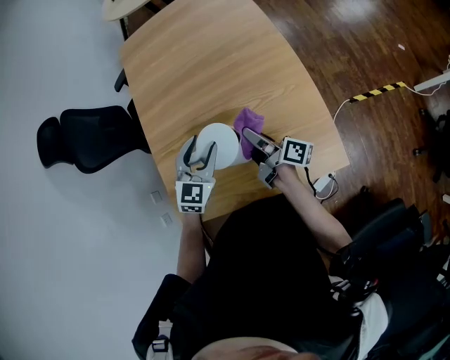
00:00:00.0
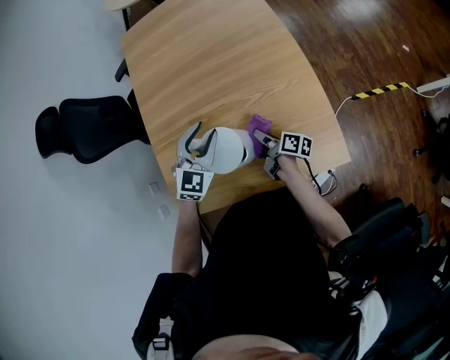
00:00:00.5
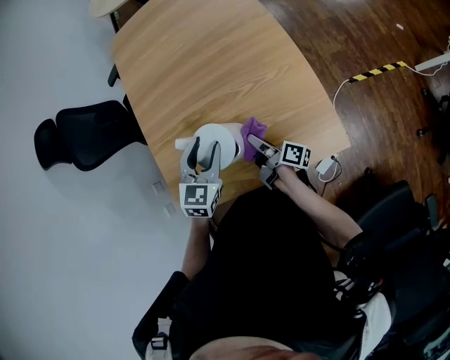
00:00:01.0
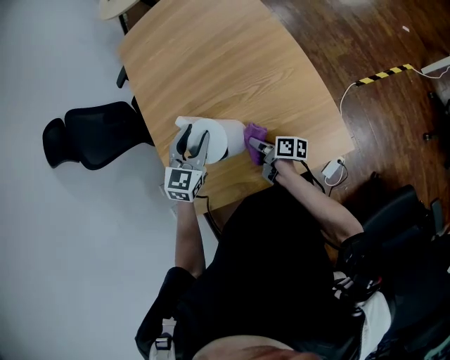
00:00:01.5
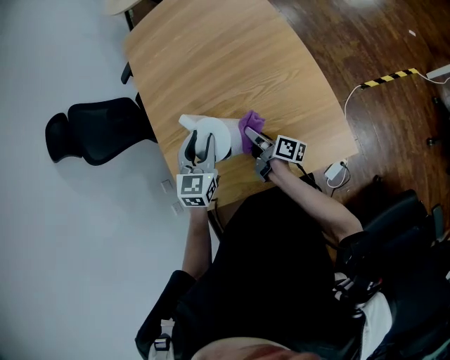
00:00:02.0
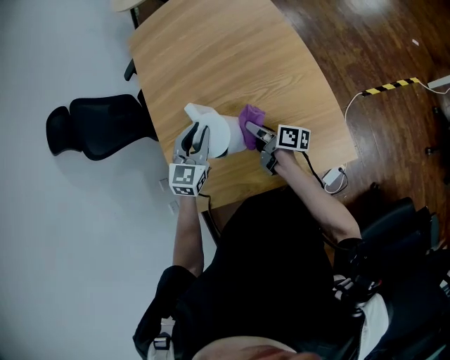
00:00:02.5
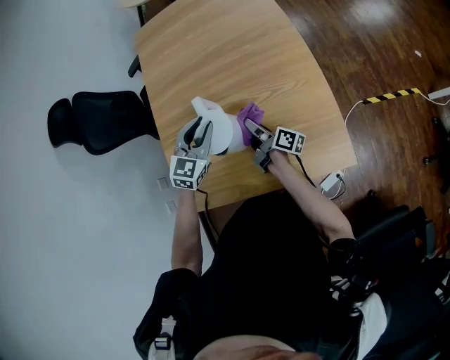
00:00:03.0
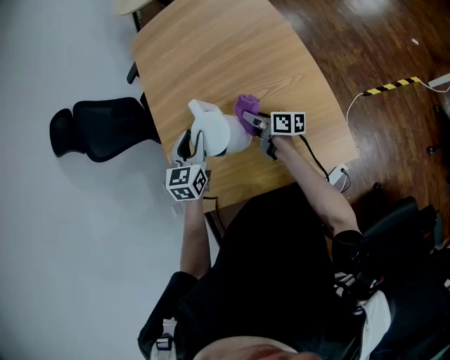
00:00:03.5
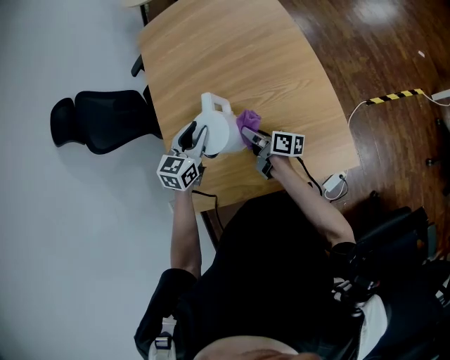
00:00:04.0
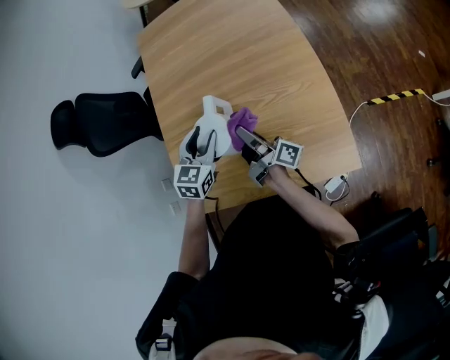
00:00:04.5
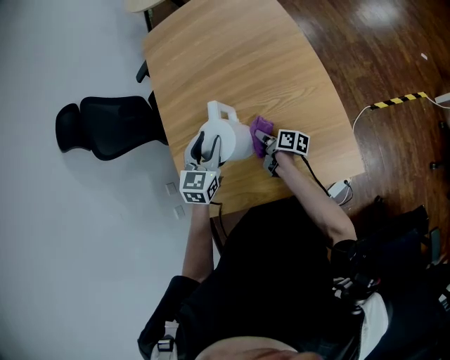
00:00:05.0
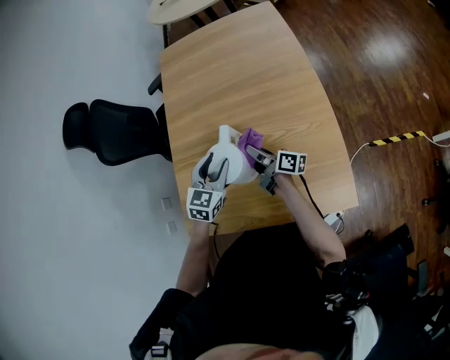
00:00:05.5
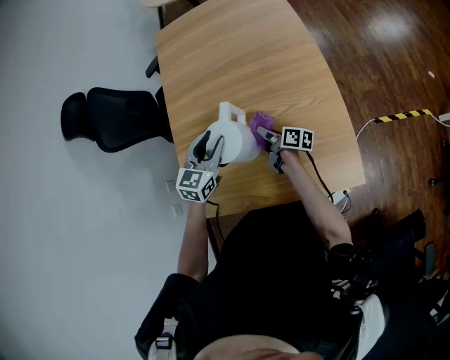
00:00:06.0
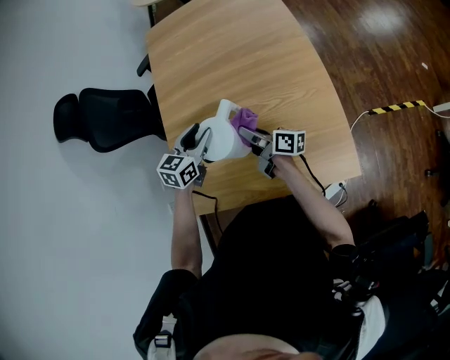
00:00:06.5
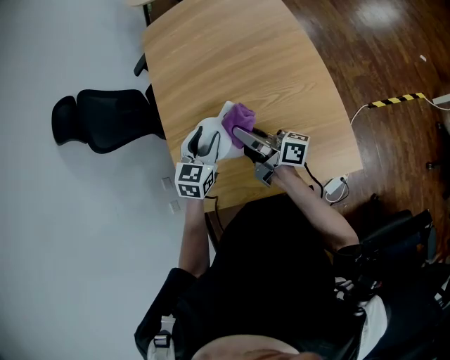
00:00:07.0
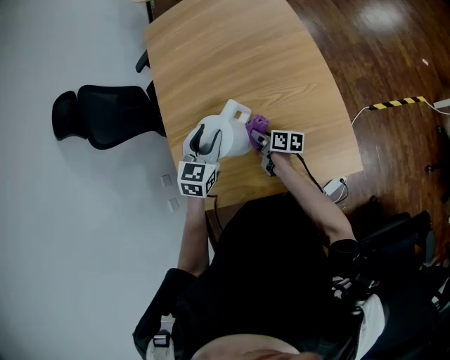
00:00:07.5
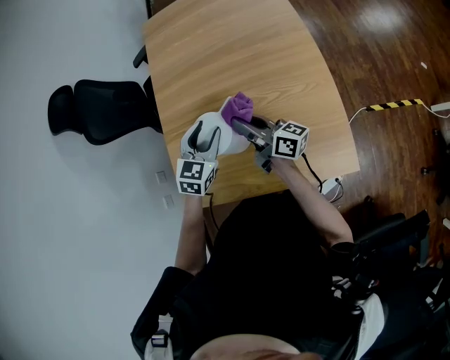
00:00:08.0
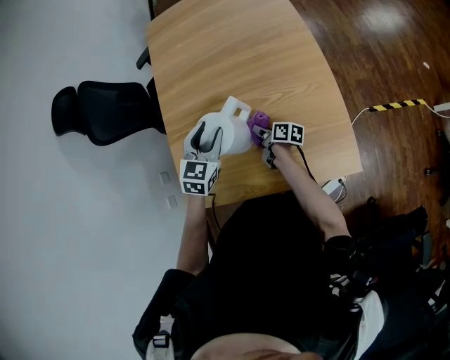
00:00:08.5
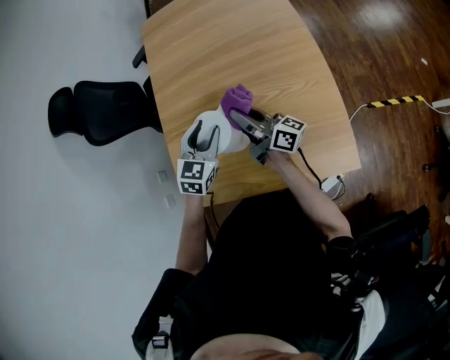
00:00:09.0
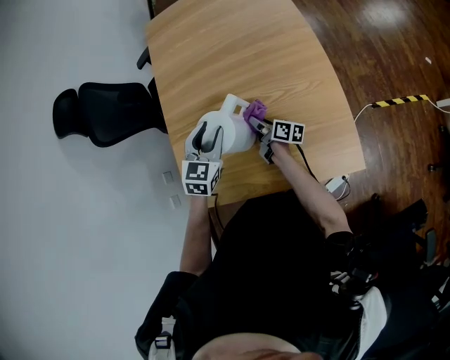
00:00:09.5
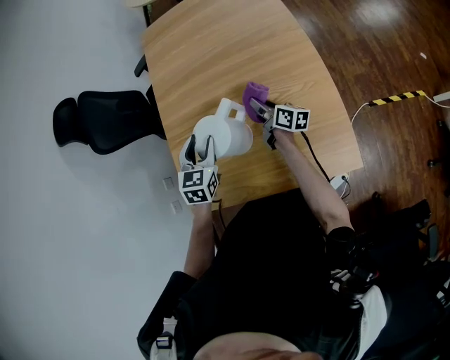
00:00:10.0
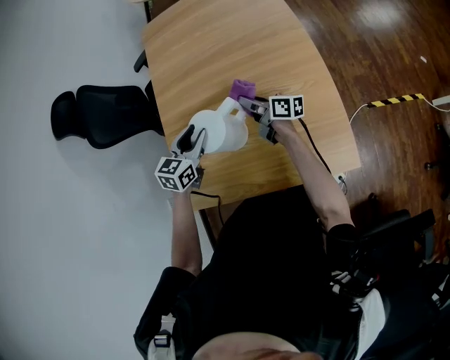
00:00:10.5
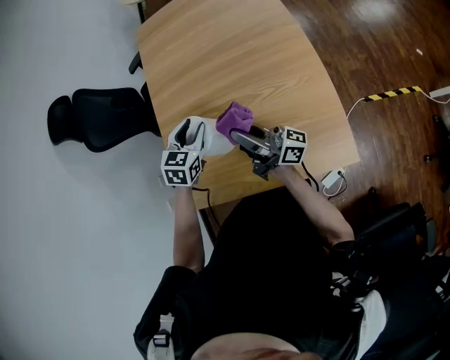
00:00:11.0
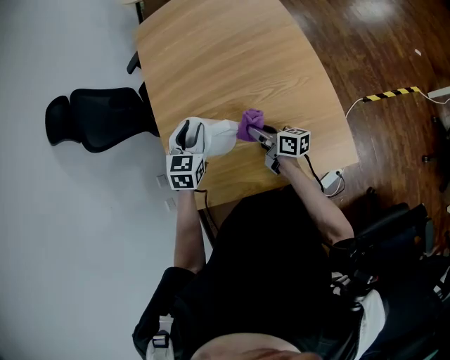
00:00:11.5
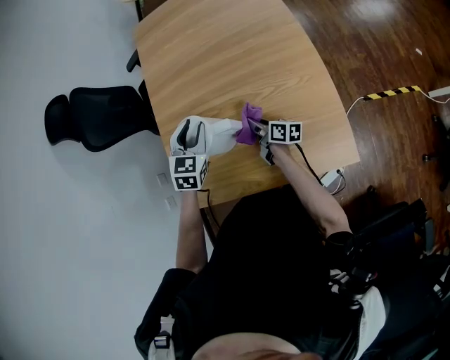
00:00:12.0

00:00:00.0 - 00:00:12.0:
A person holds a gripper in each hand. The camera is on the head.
00:00:00.0 - 00:00:02.0: The left gripper closes its fingers; the right gripper goes up and down, some 20 cm each way, reversing 3 times.
00:00:02.0 - 00:00:04.0: The left gripper shifts by roughly 5 cm.
00:00:04.0 - 00:00:06.0: The right gripper goes up and down, approximately 20 cm each way, reversing 3 times.
00:00:06.0 - 00:00:08.0: The right gripper swings up and down, about 25 cm each way, with 2 reversals, and swivels about 30 degrees.
00:00:08.0 - 00:00:10.0: The right gripper swings up and down, roughly 25 cm each way, with 3 reversals, and rotates approximately 20 degrees.
00:00:10.0 - 00:00:12.0: The right gripper goes roughly 10 cm backward and to the left, and goes upward and returns, roughly 15 cm each way.

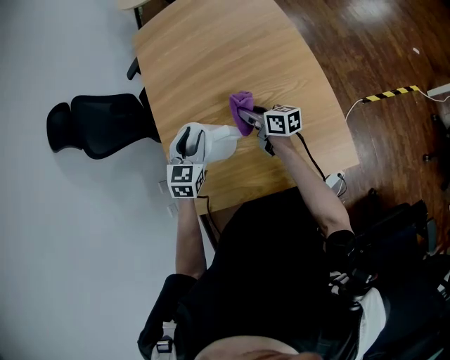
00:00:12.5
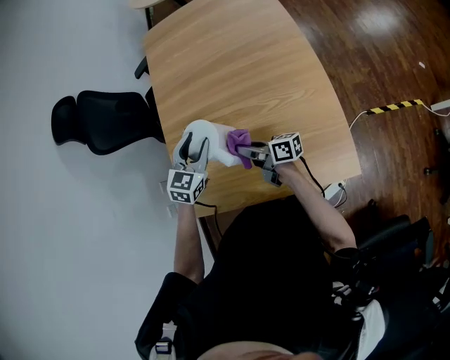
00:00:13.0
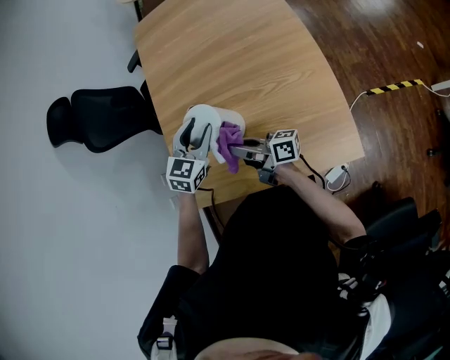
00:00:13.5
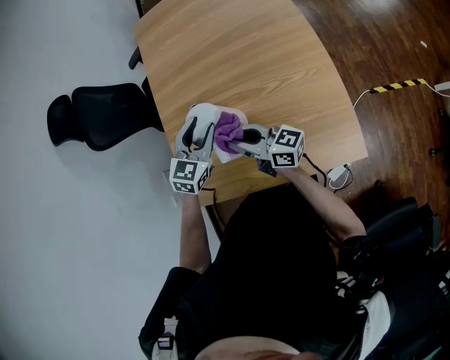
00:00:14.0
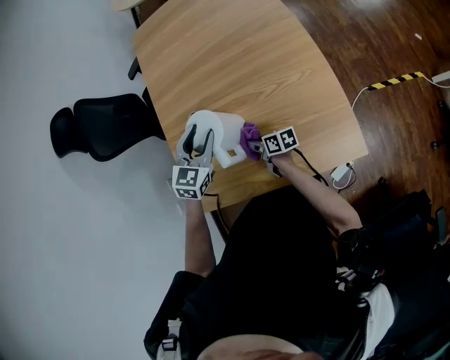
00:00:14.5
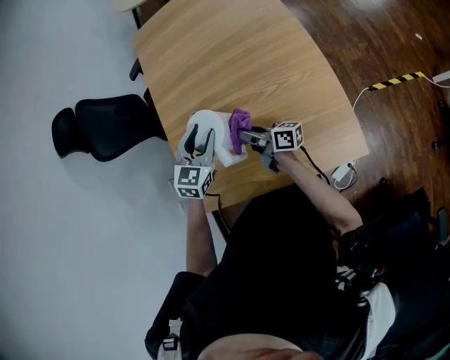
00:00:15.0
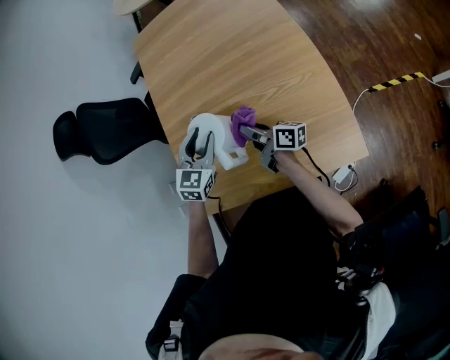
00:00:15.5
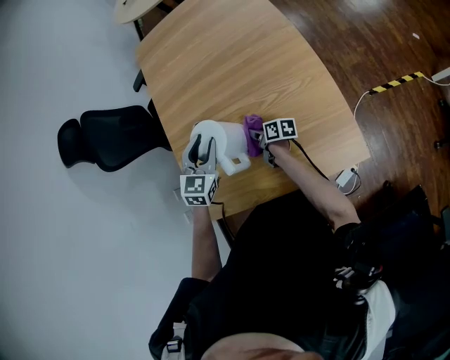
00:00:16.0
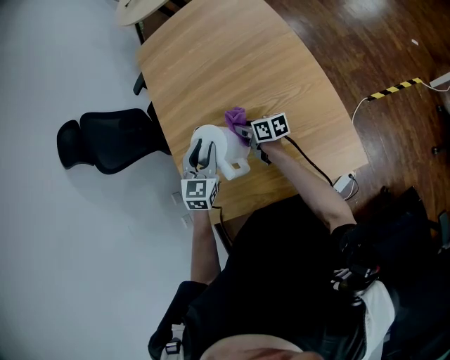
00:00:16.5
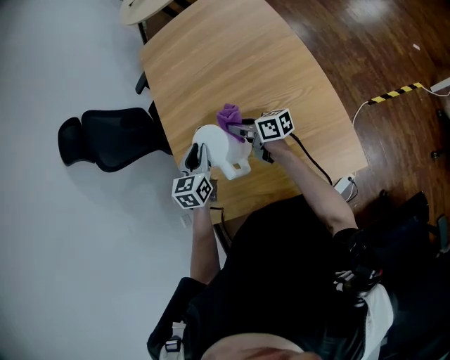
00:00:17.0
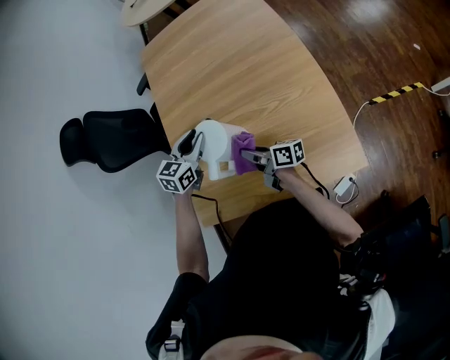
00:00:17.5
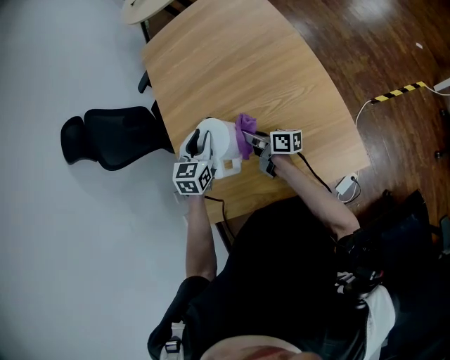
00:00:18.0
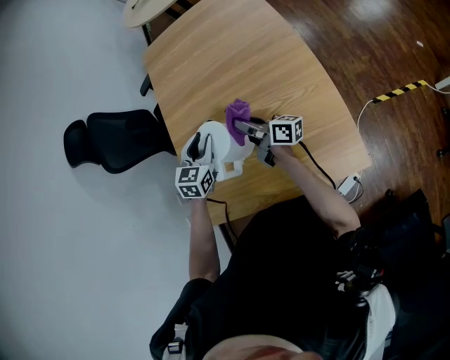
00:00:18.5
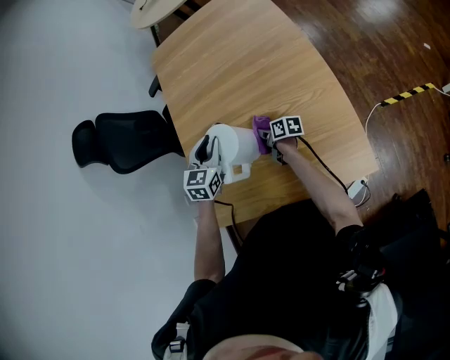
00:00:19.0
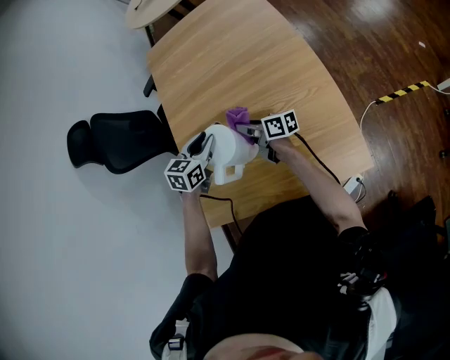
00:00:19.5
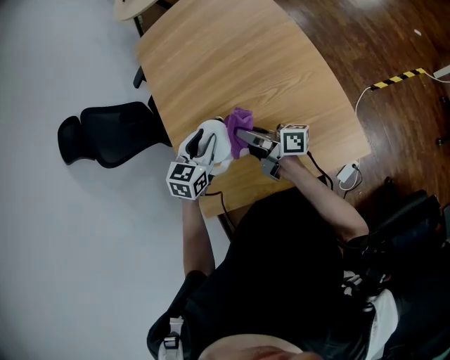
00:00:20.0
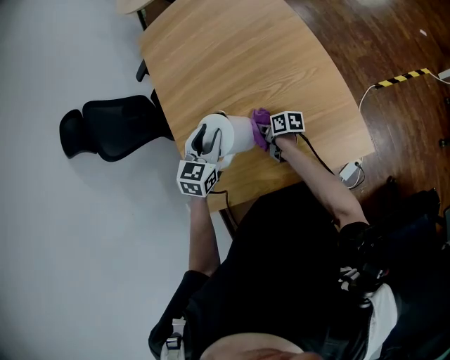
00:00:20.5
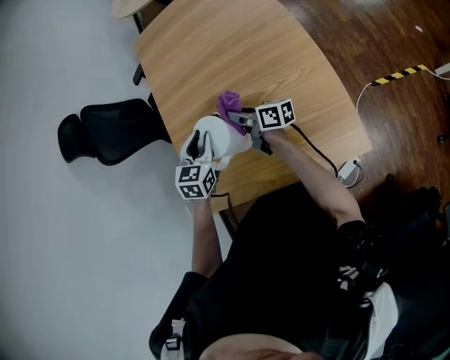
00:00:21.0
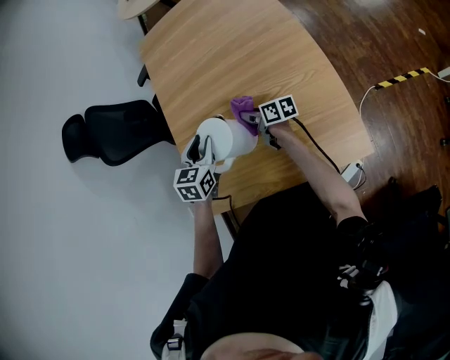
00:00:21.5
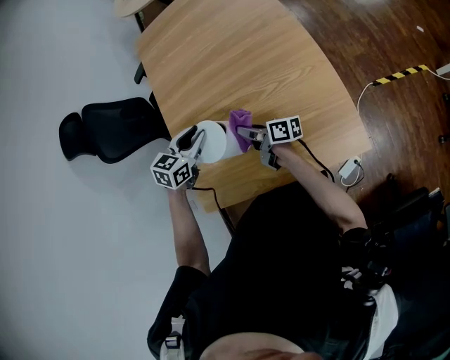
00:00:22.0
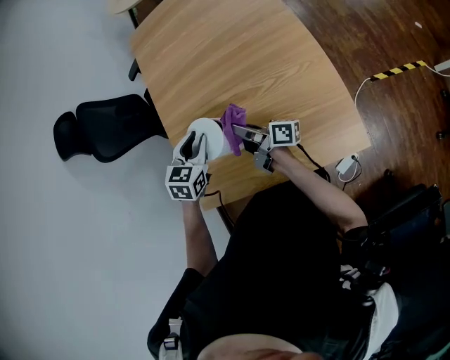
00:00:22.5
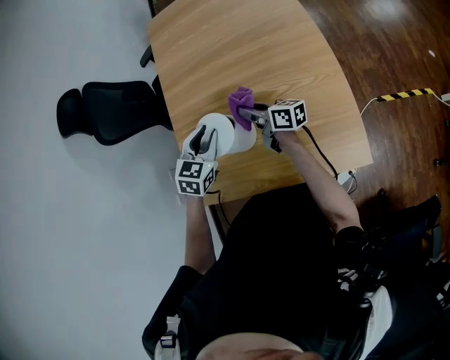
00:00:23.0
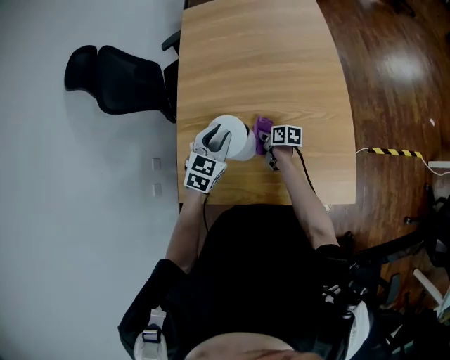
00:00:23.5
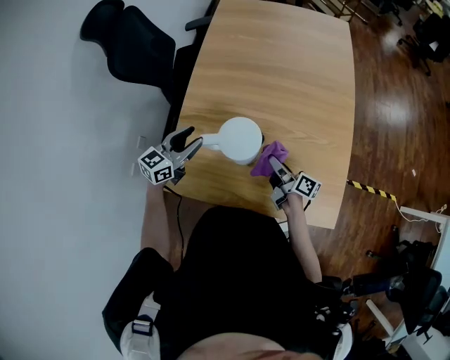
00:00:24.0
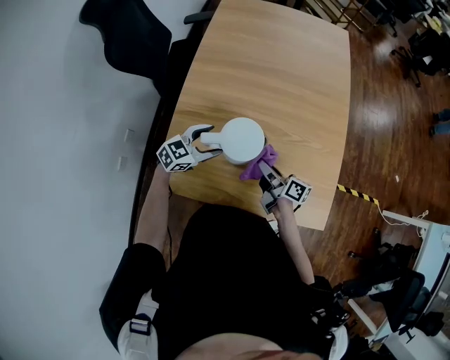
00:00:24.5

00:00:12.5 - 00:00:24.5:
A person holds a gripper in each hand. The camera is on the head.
00:00:12.5 - 00:00:14.5: The right gripper is displaced downward, to the left and backward by approximately 20 cm.
00:00:14.5 - 00:00:16.5: The right gripper goes up and down, some 15 cm each way, reversing 2 times.
00:00:16.5 - 00:00:18.5: The right gripper moves up and down over approximately 10 cm, changing direction 2 times, and rotates about 20 degrees.
00:00:18.5 - 00:00:20.5: The right gripper goes up and down, approximately 25 cm each way, reversing 2 times, and tilts its fingers some 40 degrees downward; the left gripper shifts roughly 5 cm backward.
00:00:20.5 - 00:00:22.5: The right gripper goes up and down, roughly 20 cm each way, reversing 2 times, and tilts its fingers some 40 degrees upward.
00:00:22.5 - 00:00:24.5: The right gripper shifts about 10 cm to the left, travels downward and back again, some 15 cm each way, and changes its angle by about 20 degrees. The left gripper moves to the left, roughly 15 cm, swivels roughly 30 degrees, and opens its fingers.

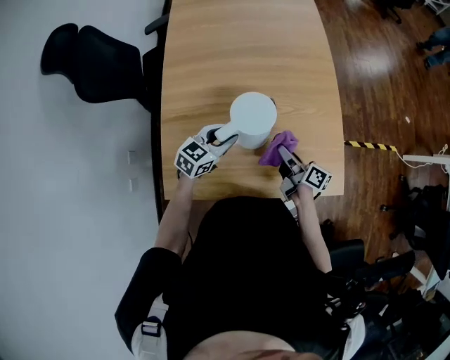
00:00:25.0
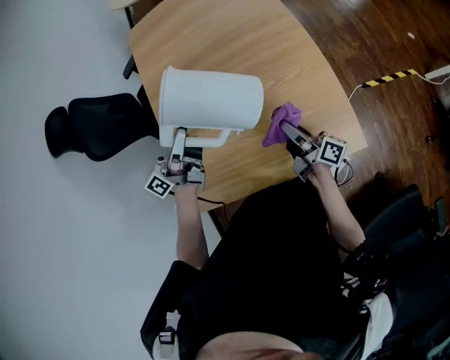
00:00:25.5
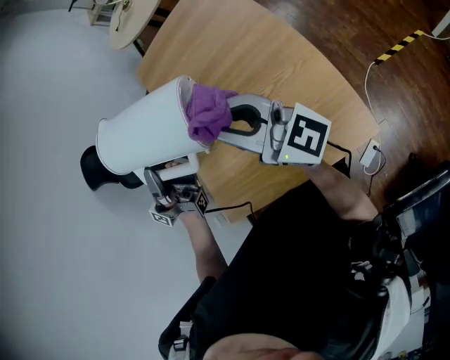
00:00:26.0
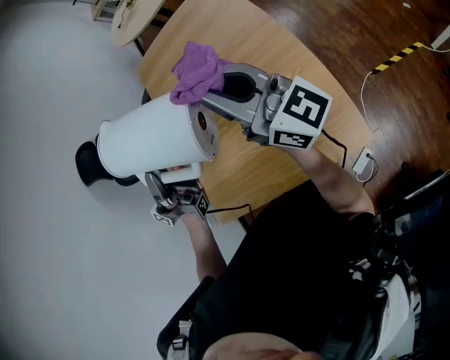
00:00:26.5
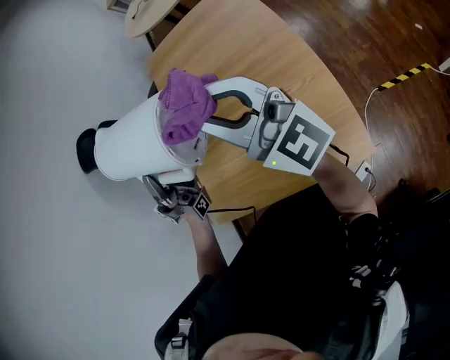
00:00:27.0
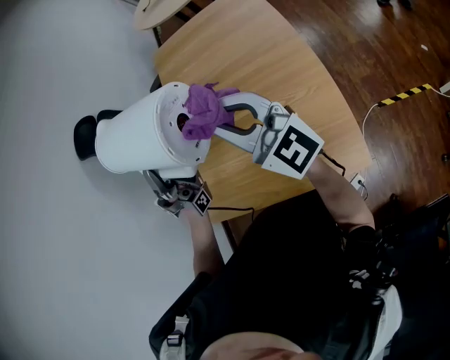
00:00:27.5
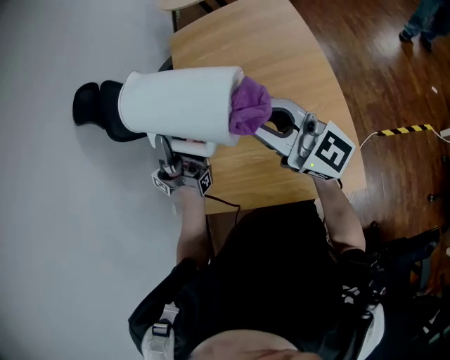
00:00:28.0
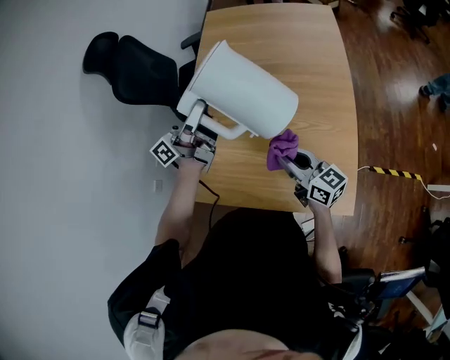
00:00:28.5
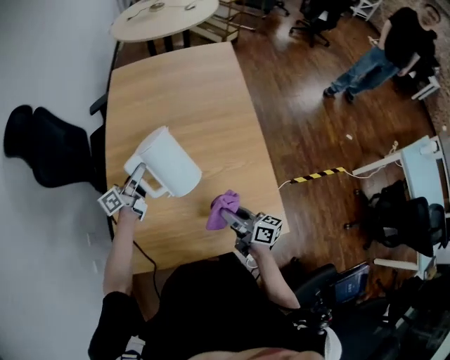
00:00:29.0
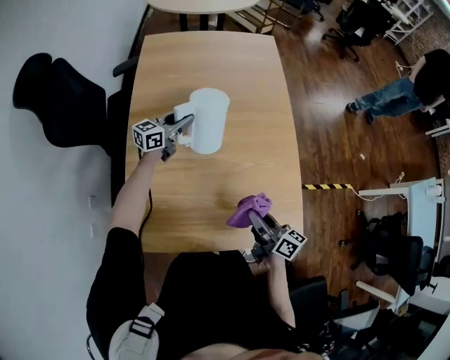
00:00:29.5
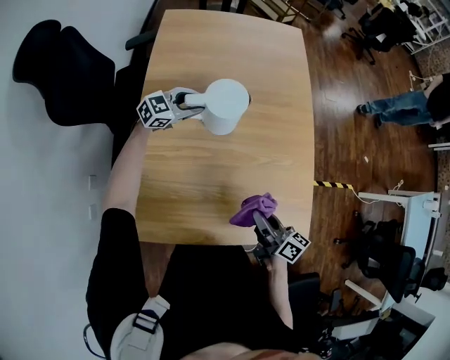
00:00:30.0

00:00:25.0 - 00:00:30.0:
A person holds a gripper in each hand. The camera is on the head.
00:00:25.0 - 00:00:27.5: The grippers both shift upward by some 30 cm. The left gripper points its fingers about 80 degrees further upward, while the right gripper twists approximately 60 degrees counterclockwise, seen from behind.
00:00:27.5 - 00:00:30.0: The left gripper shifts by approximately 40 cm, and tilts its fingers roughly 70 degrees downward. Meanwhile the right gripper moves up and down over about 40 cm, changing direction 2 times, and angles its fingers downward, by about 30 degrees.
